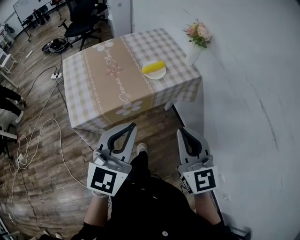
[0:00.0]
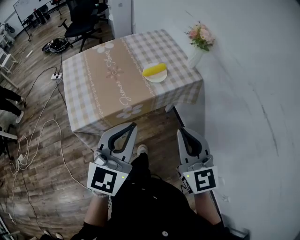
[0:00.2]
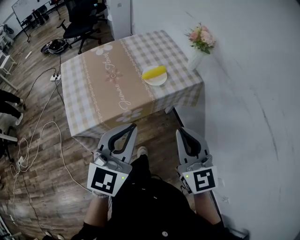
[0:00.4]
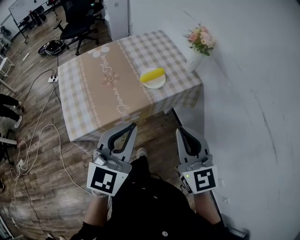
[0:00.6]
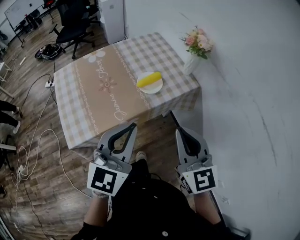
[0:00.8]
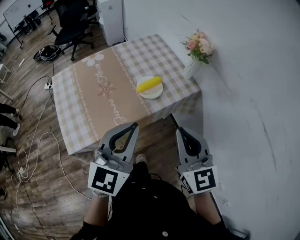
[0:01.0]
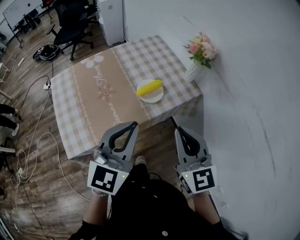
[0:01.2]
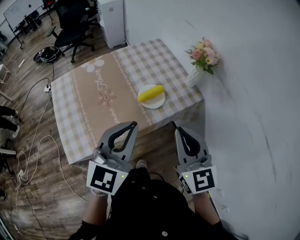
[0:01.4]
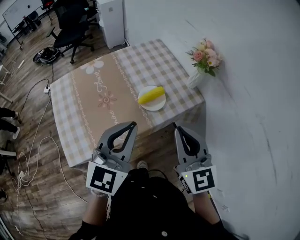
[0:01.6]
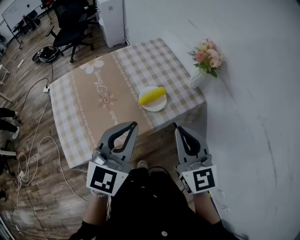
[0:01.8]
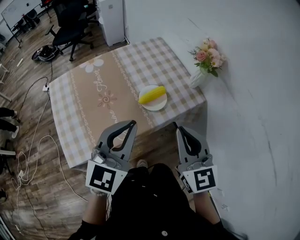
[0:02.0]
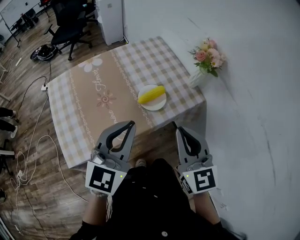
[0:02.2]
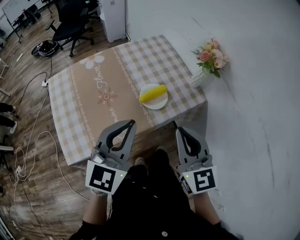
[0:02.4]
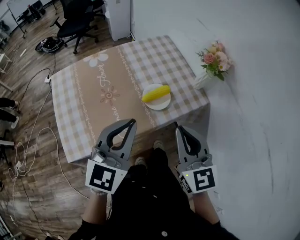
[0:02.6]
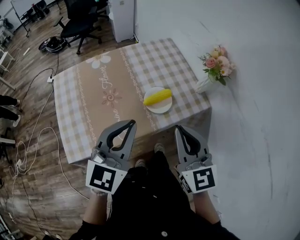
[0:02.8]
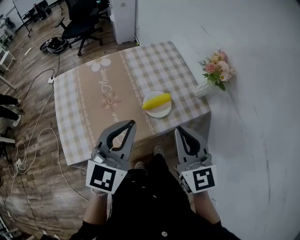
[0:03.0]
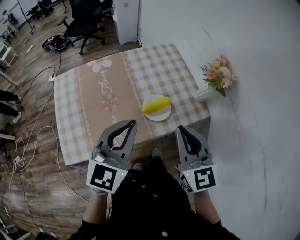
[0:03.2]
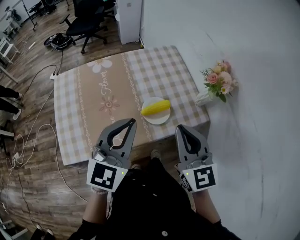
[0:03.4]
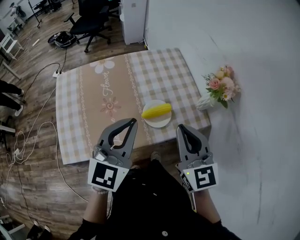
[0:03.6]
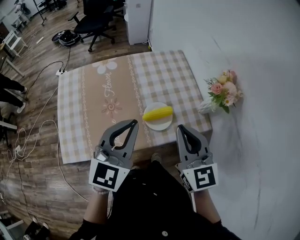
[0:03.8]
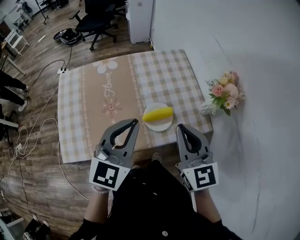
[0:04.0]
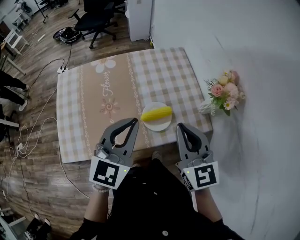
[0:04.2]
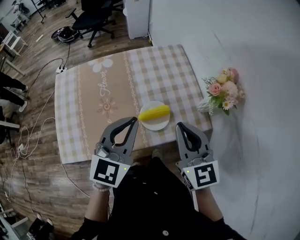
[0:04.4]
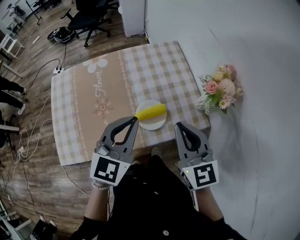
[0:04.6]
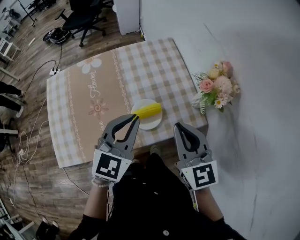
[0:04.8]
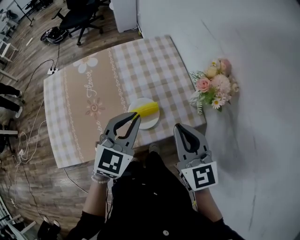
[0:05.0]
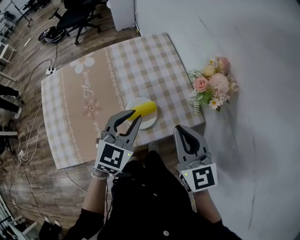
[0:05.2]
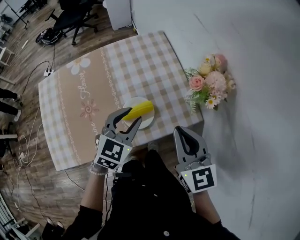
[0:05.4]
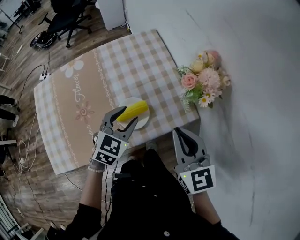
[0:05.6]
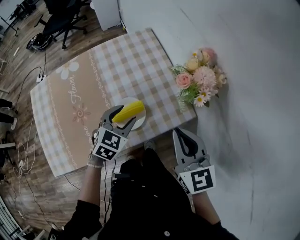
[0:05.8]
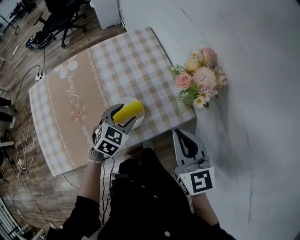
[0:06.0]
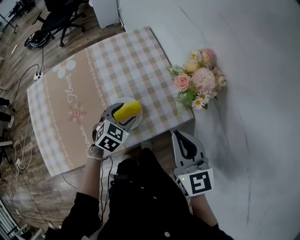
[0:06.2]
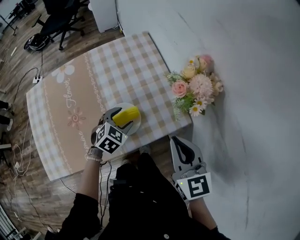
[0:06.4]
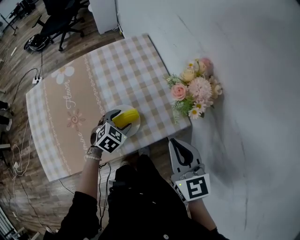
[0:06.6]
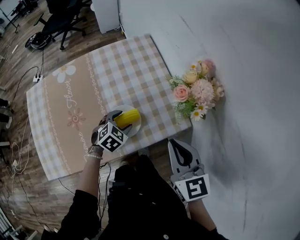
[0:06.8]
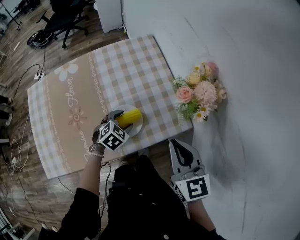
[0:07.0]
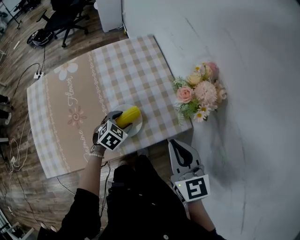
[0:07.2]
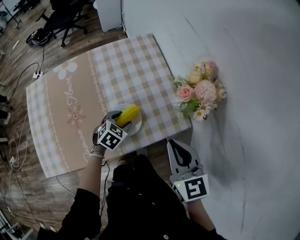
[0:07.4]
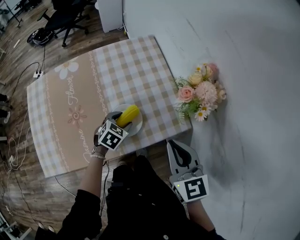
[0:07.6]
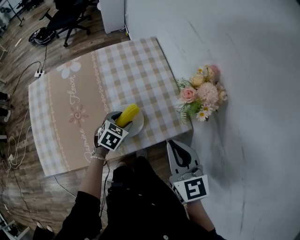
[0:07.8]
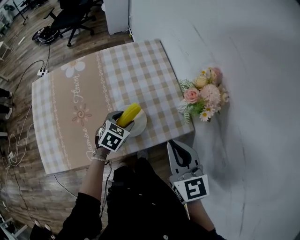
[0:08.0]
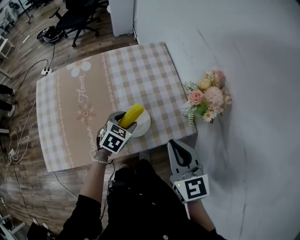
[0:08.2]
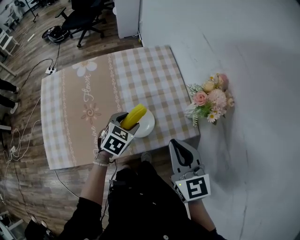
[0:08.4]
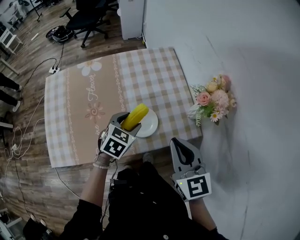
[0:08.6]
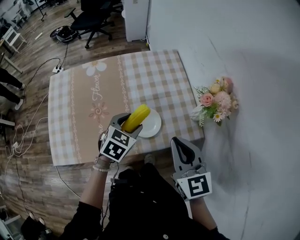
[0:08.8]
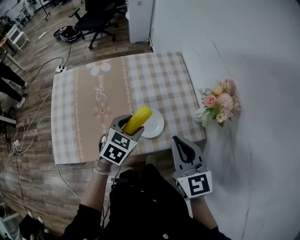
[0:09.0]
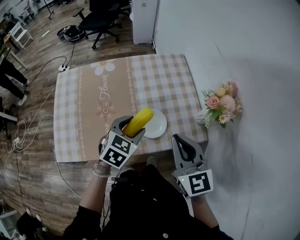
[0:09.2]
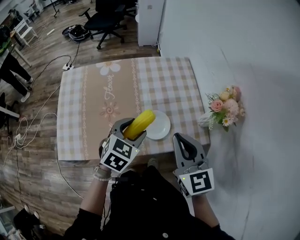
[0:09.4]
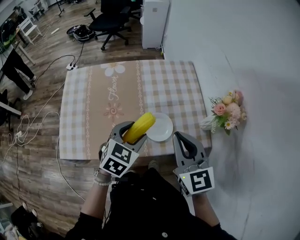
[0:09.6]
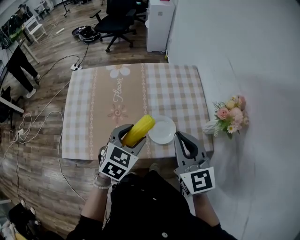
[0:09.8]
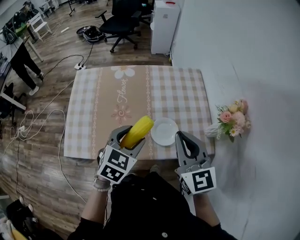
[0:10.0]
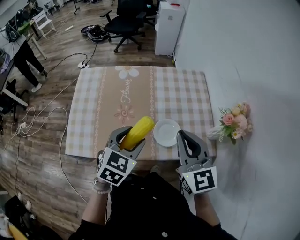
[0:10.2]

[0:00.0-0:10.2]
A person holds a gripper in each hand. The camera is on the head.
0:00.0 to 0:01.4: The two grippers go some 20 cm forward.
0:01.4 to 0:03.0: Both grippers move forward, roughly 5 cm.
0:03.0 to 0:04.4: The right gripper is displaced forward by approximately 10 cm; the left gripper heads forward and to the right, covering approximately 10 cm.
0:04.4 to 0:05.8: The right gripper moves to the right, about 10 cm. The left gripper heads downward and to the right, covering about 20 cm, changes its angle by about 30 degrees, and opens up.
0:05.8 to 0:07.2: The left gripper is displaced downward by about 10 cm.
0:07.2 to 0:08.8: The right gripper moves to the left, some 5 cm. Meanwhile the left gripper shifts about 15 cm upward and to the left.
0:08.8 to 0:10.2: The left gripper heads to the left, upward and backward, covering approximately 15 cm. Meanwhile the right gripper moves to the left, about 10 cm.

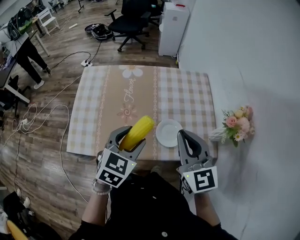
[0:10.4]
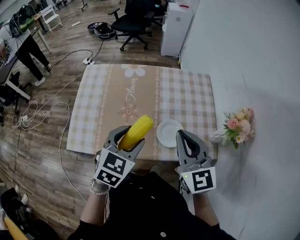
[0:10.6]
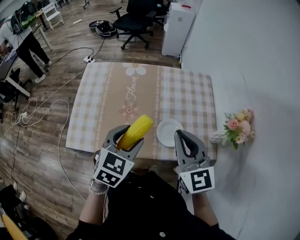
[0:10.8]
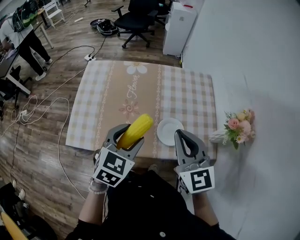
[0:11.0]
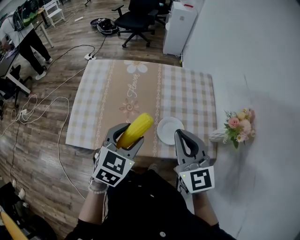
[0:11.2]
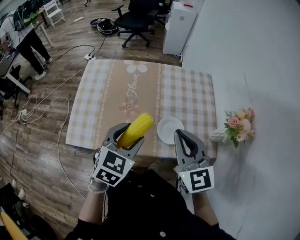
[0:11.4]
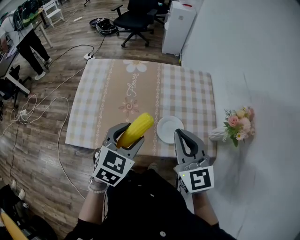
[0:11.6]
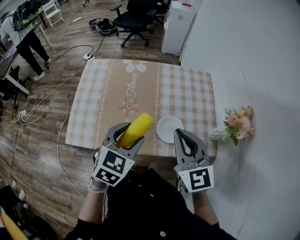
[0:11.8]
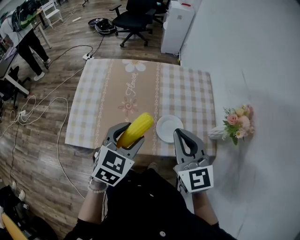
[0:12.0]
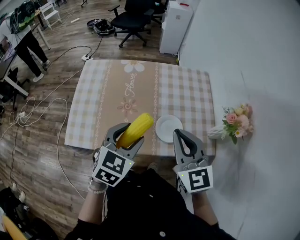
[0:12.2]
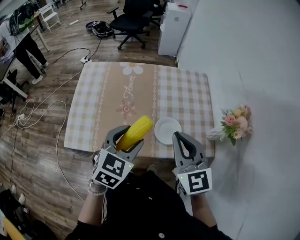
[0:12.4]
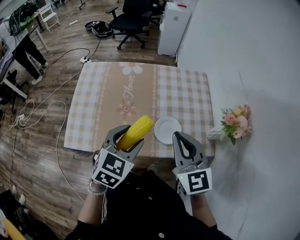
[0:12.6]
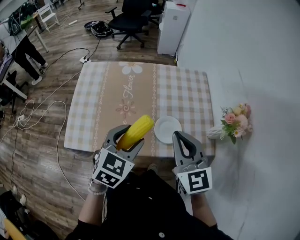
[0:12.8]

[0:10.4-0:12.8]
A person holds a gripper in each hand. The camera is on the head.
0:10.4 to 0:11.6: There are only small adjustments of the grippers.
0:11.6 to 0:12.8: Both grippers stay put.

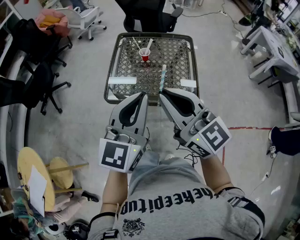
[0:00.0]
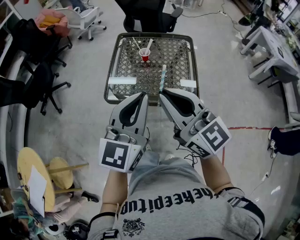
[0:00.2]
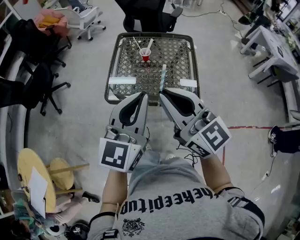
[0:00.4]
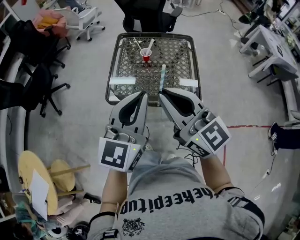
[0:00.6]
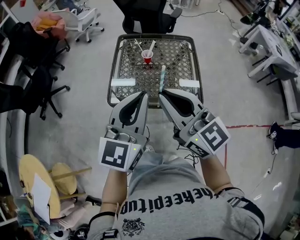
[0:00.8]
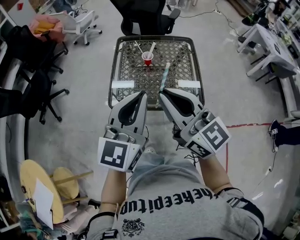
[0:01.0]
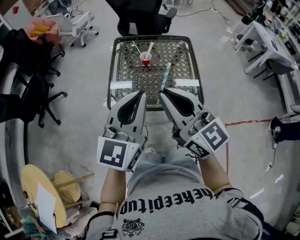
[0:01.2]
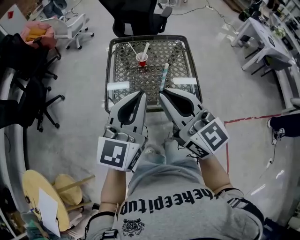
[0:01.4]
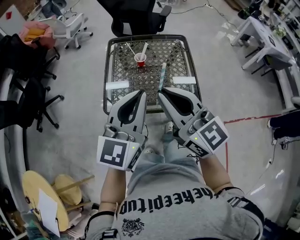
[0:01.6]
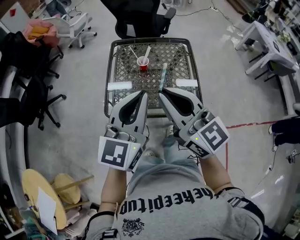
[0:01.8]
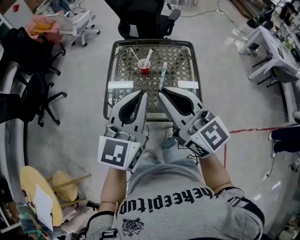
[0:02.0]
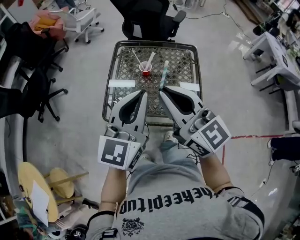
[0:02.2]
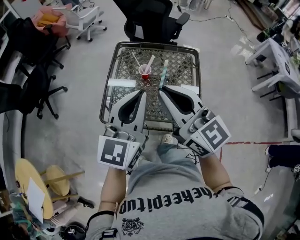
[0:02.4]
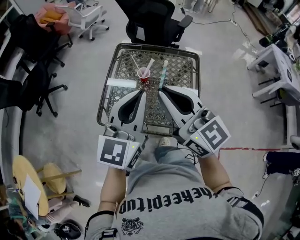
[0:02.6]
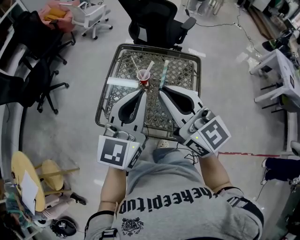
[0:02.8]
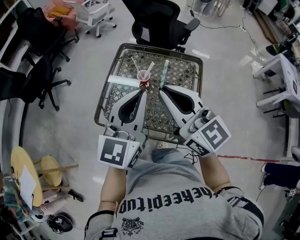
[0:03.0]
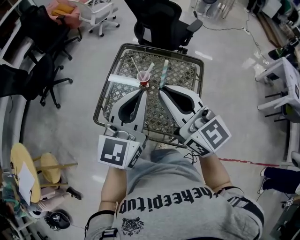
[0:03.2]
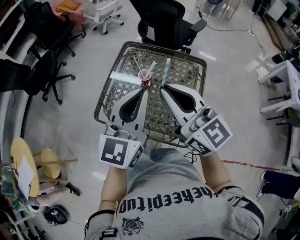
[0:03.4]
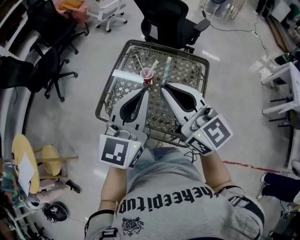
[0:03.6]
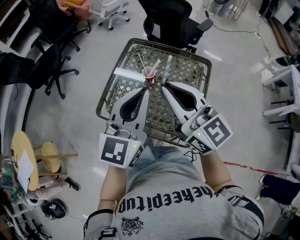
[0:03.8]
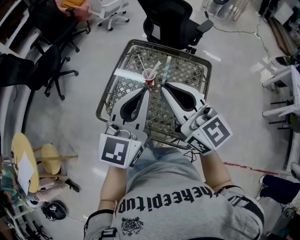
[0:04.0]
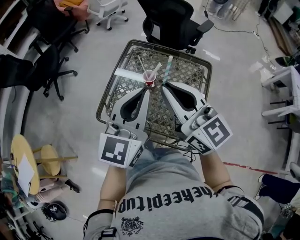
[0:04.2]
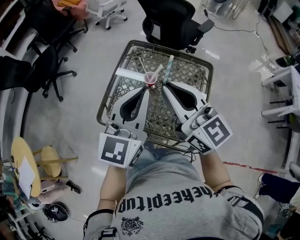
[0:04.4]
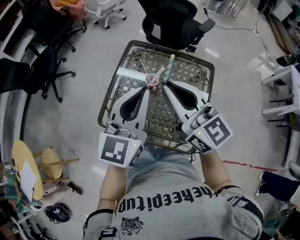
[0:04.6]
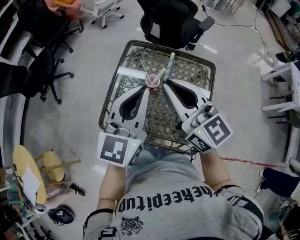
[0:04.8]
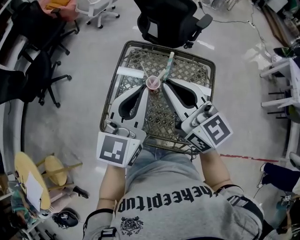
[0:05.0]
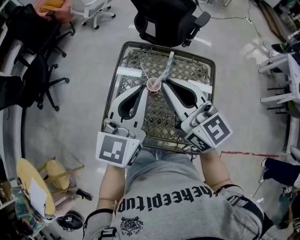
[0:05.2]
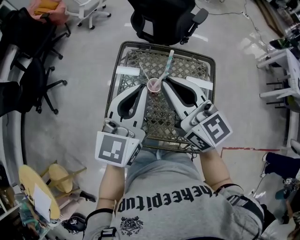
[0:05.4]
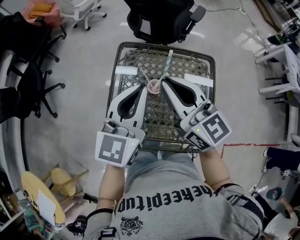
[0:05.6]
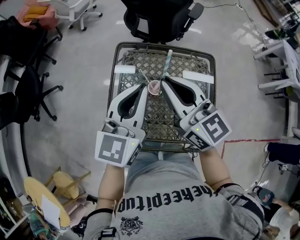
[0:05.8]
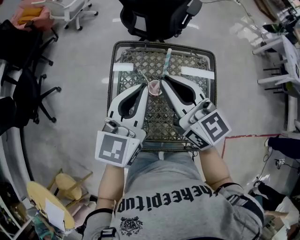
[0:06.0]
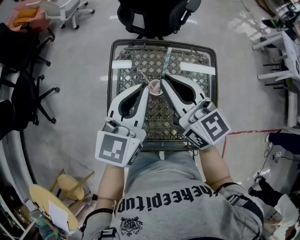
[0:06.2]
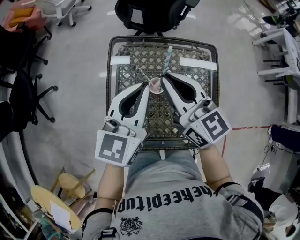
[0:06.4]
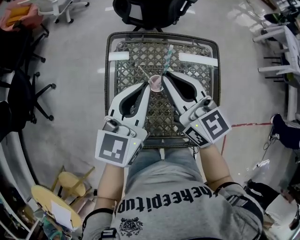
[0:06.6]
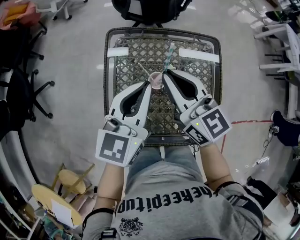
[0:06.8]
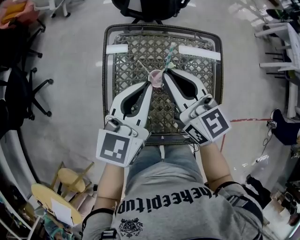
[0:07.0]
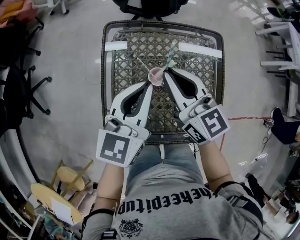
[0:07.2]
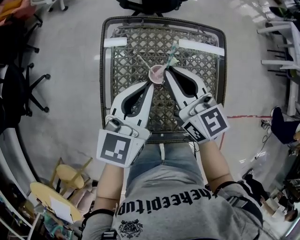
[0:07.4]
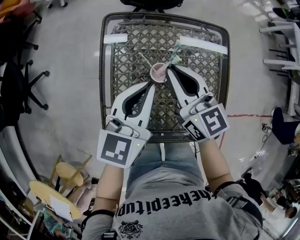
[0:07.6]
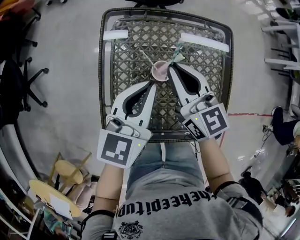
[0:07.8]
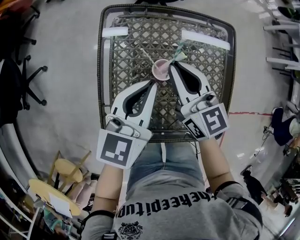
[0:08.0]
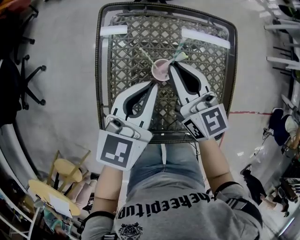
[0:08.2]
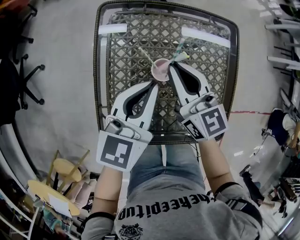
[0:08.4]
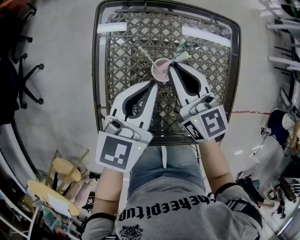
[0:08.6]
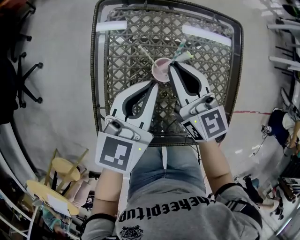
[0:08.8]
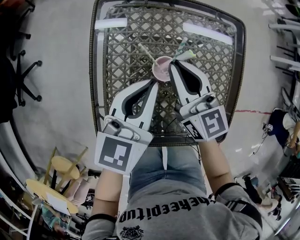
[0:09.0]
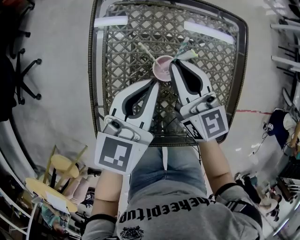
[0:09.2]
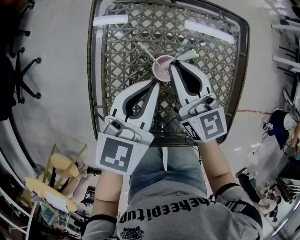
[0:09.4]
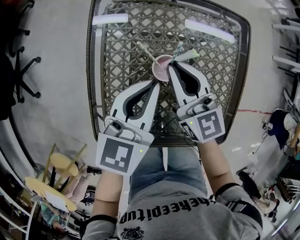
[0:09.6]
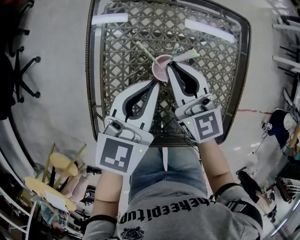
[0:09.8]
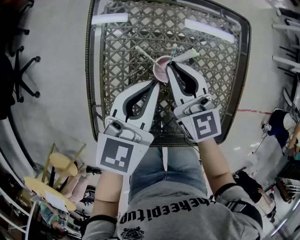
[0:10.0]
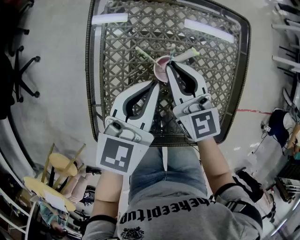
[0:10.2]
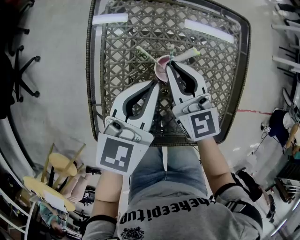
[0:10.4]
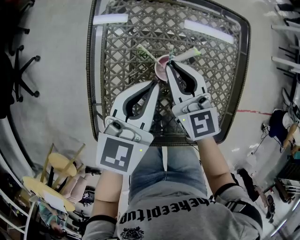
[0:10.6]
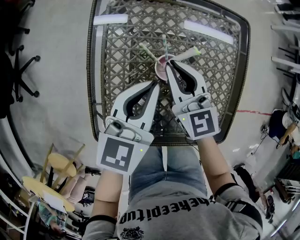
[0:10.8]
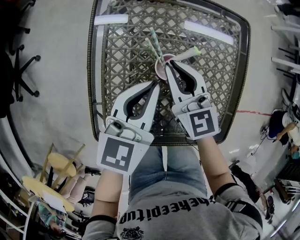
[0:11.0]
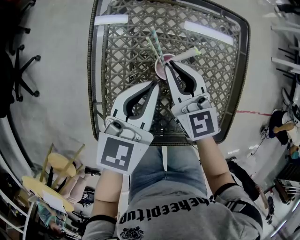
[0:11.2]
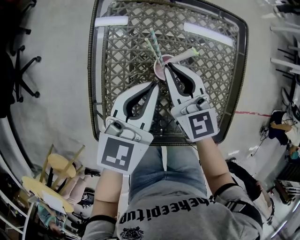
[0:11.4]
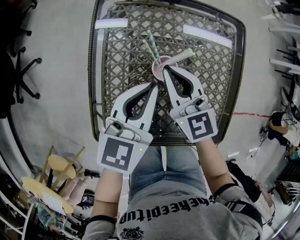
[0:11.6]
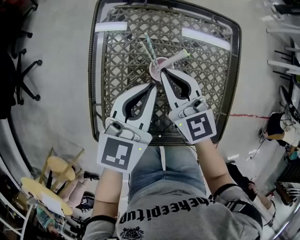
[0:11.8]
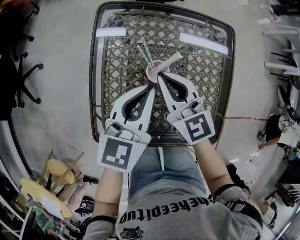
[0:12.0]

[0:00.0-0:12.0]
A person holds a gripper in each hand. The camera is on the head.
0:00.0 to 0:01.6: Both grippers move forward, some 5 cm.
0:01.6 to 0:03.0: The grippers both shift forward and to the right by some 15 cm.
0:03.0 to 0:04.4: The right gripper moves forward, about 5 cm.
0:04.4 to 0:06.0: The two grippers go roughly 15 cm forward.
0:06.0 to 0:07.6: The grippers both shift downward by some 10 cm.
0:07.6 to 0:09.0: The grippers both shift downward by some 10 cm.
0:09.0 to 0:10.4: The grippers stay close to where they were, moving slightly.
0:10.4 to 0:12.0: The right gripper changes place by about 5 cm.
